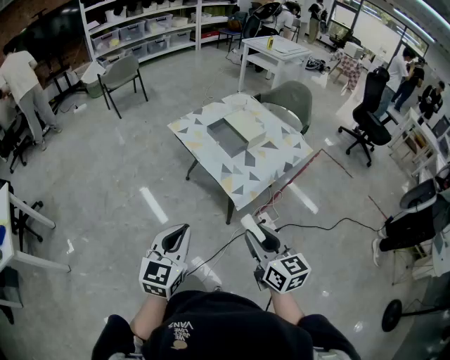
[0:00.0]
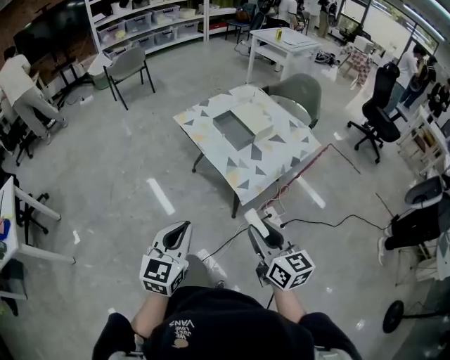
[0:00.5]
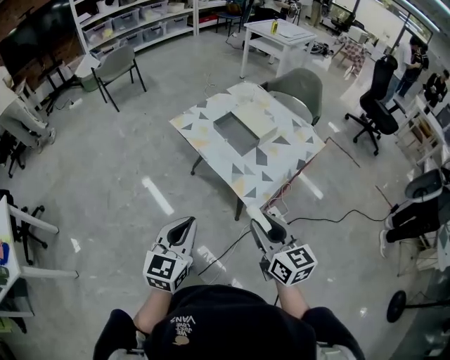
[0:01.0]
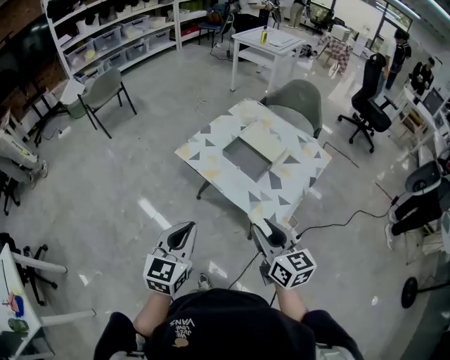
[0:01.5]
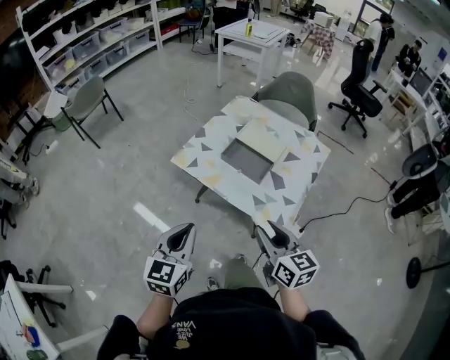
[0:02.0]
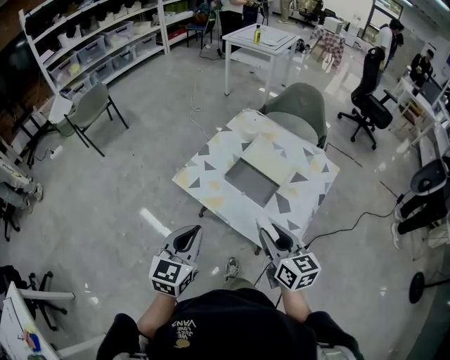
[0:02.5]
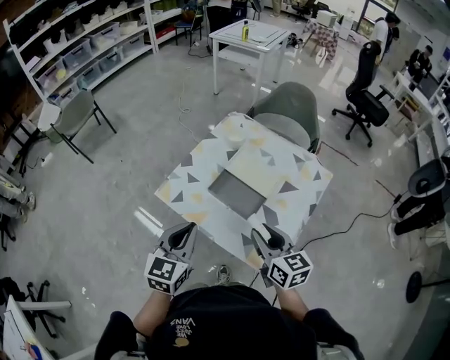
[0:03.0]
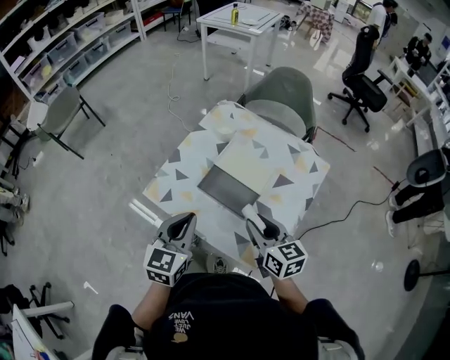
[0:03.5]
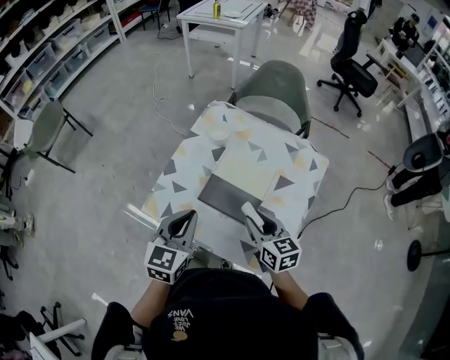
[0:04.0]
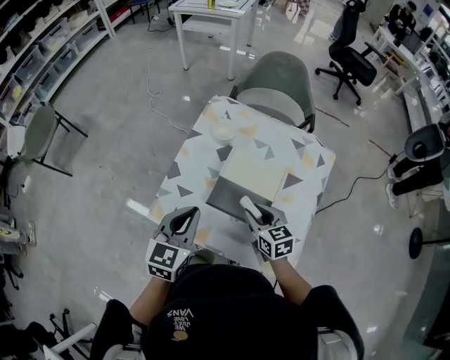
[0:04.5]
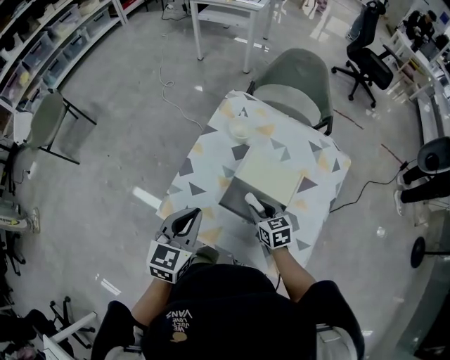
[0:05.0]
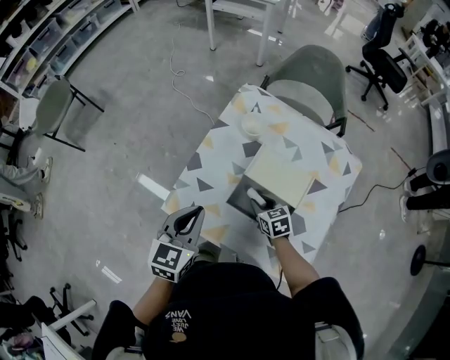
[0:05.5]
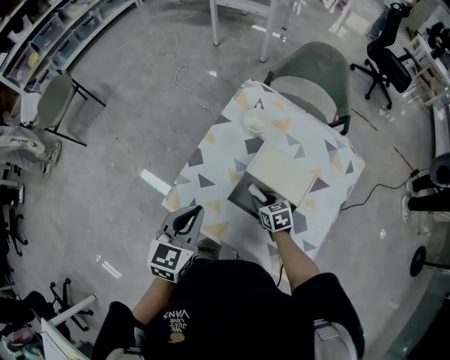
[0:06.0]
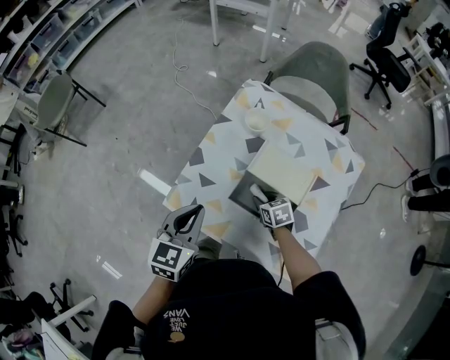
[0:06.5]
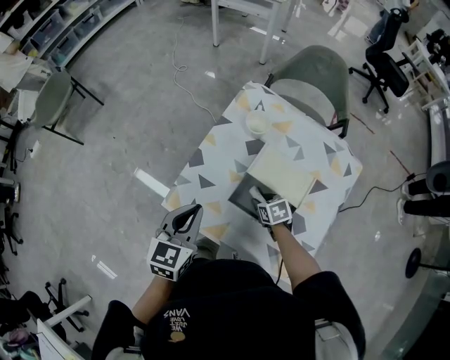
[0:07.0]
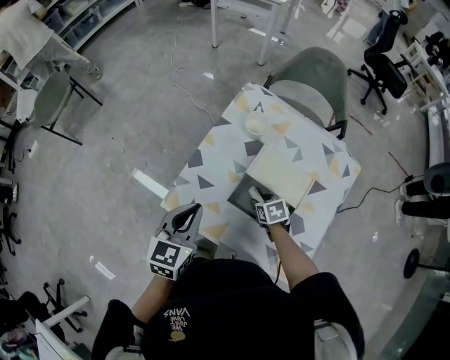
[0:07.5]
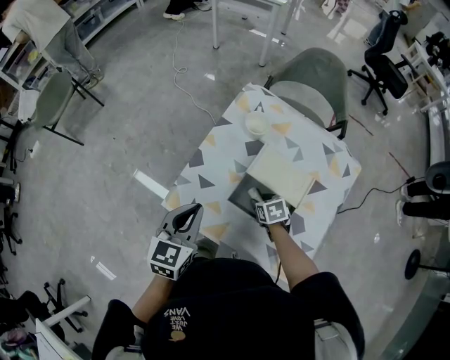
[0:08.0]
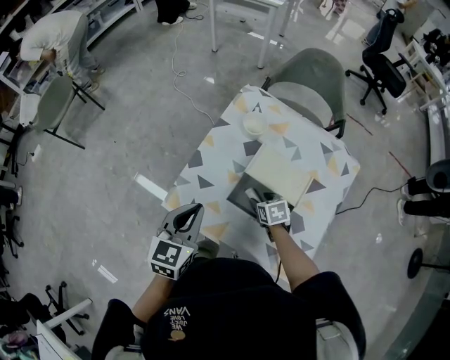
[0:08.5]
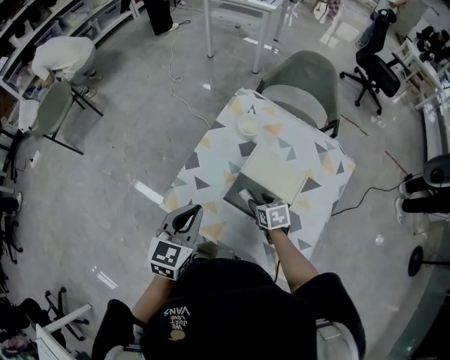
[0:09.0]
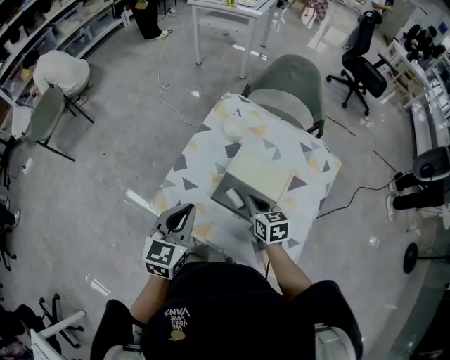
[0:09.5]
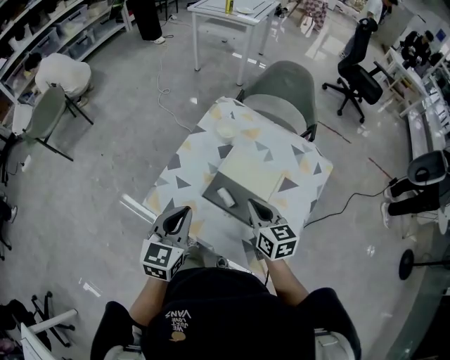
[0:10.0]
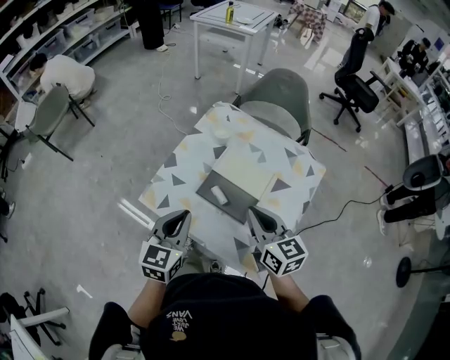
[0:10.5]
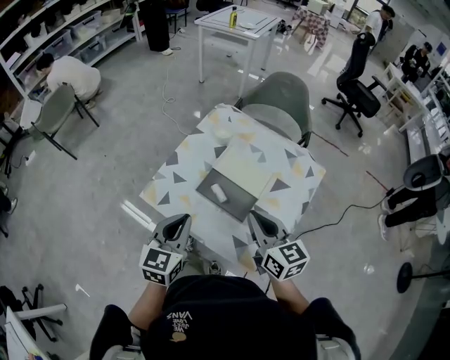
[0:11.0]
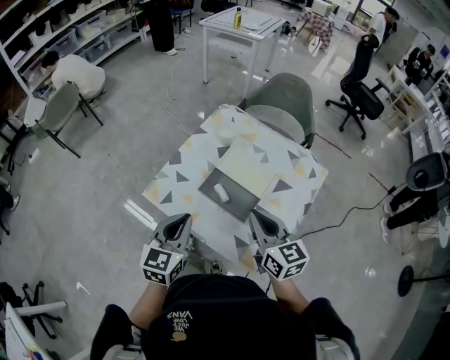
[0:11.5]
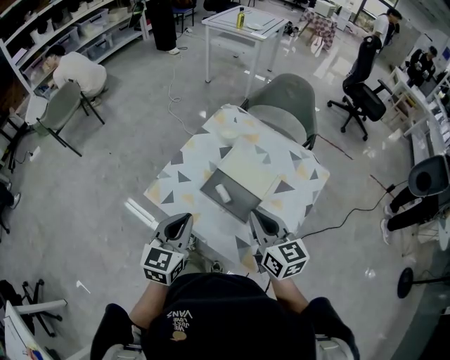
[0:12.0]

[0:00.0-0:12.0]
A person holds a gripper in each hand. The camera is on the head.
0:00.0 to 0:02.0: Both grippers move forward and to the left, about 35 cm.
0:02.0 to 0:04.0: Both grippers move forward, roughly 30 cm.
0:04.0 to 0:06.0: The left gripper is displaced to the left and forward by about 10 cm. The right gripper heads downward and forward, covering approximately 25 cm, and changes its angle by about 30 degrees.
0:06.0 to 0:08.0: The grippers stay close to where they were, moving slightly.
0:08.0 to 0:10.0: The left gripper goes approximately 10 cm backward and to the right, while the right gripper moves upward, roughly 25 cm, tilts its fingers roughly 40 degrees upward, and closes.
0:10.0 to 0:12.0: The left gripper is displaced backward by some 10 cm, while the right gripper moves backward and upward, about 10 cm.

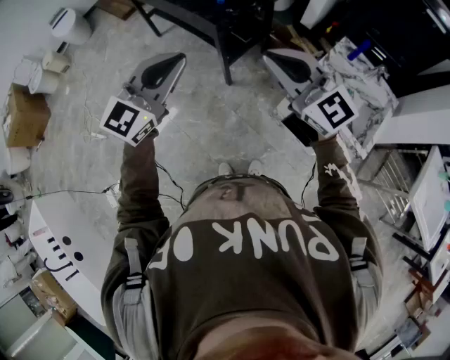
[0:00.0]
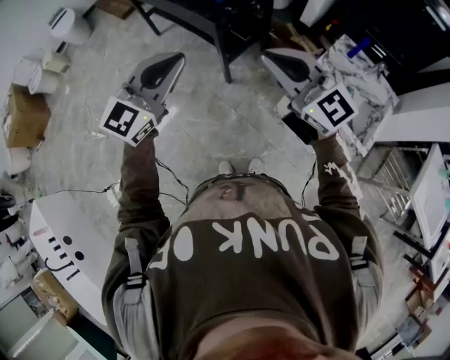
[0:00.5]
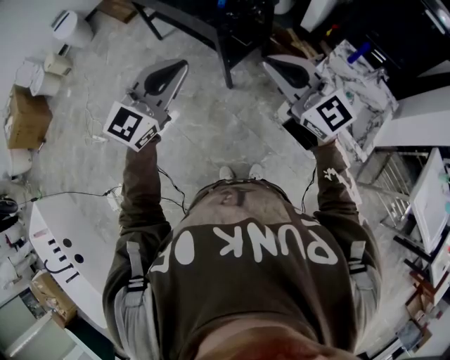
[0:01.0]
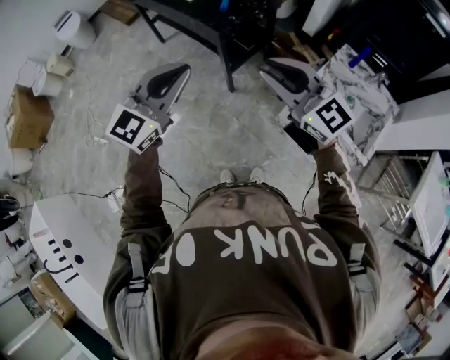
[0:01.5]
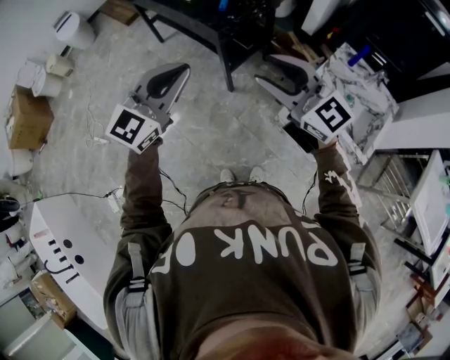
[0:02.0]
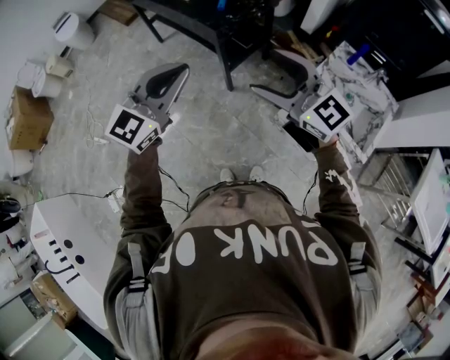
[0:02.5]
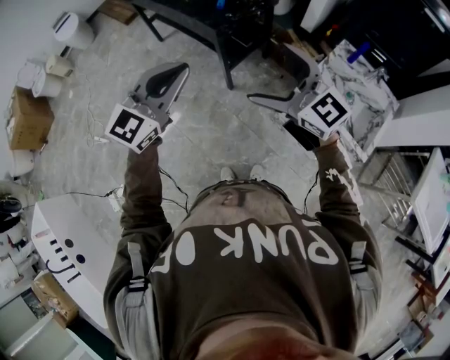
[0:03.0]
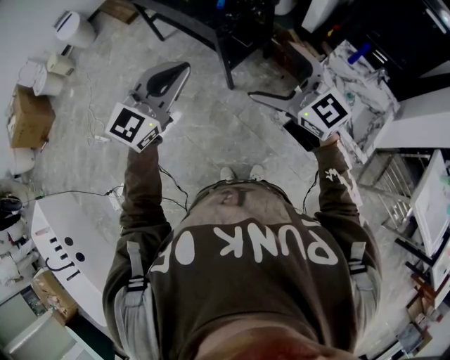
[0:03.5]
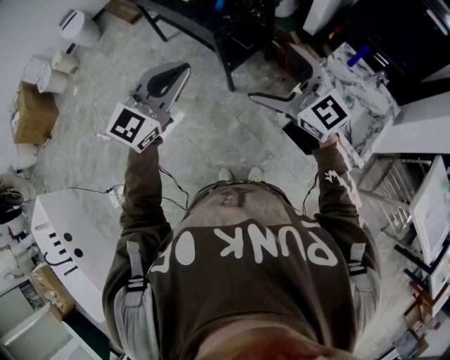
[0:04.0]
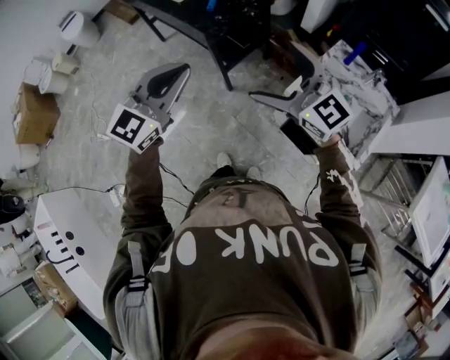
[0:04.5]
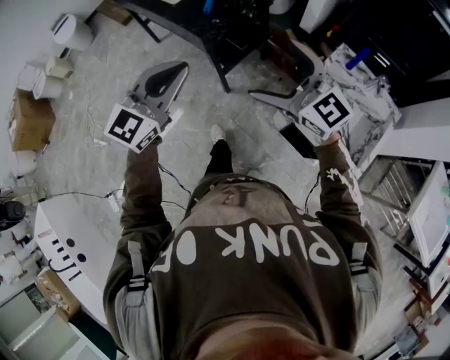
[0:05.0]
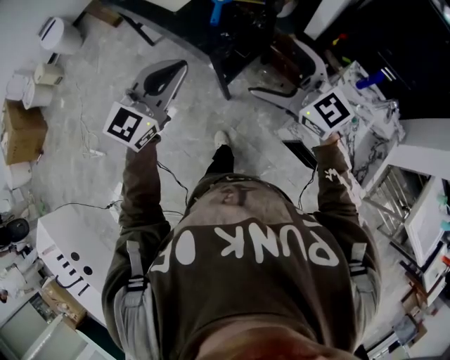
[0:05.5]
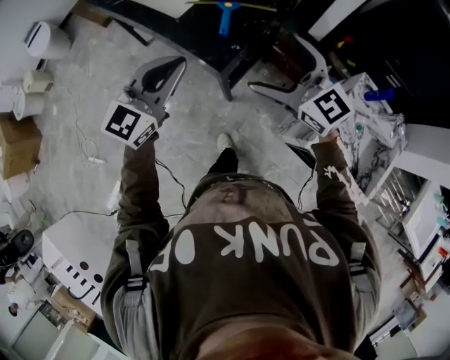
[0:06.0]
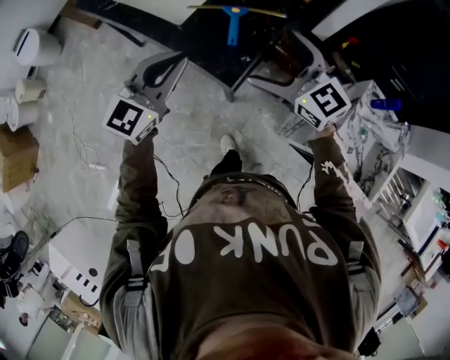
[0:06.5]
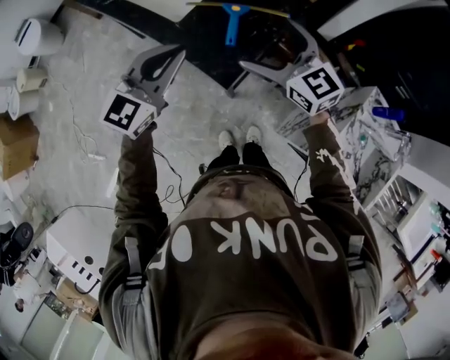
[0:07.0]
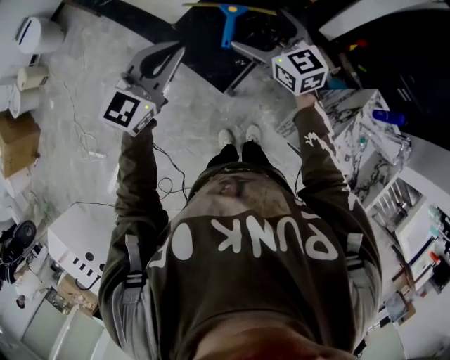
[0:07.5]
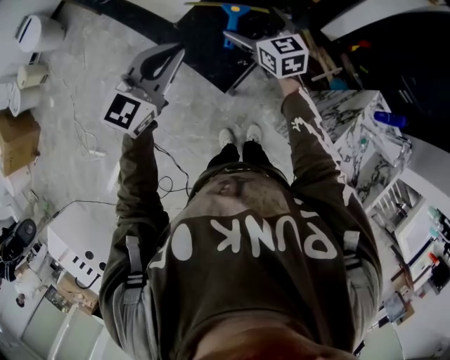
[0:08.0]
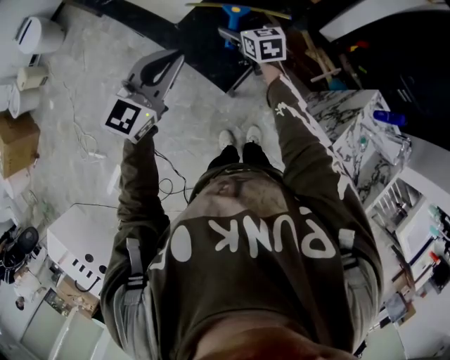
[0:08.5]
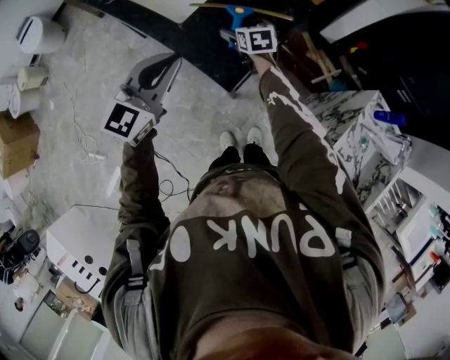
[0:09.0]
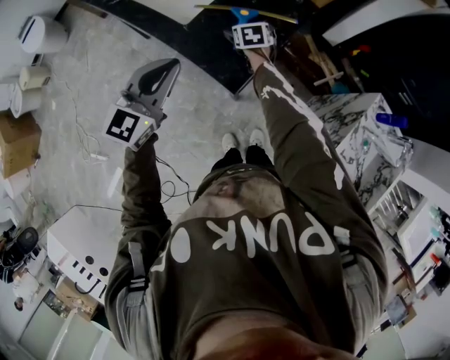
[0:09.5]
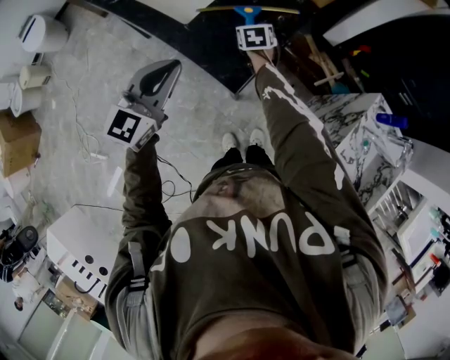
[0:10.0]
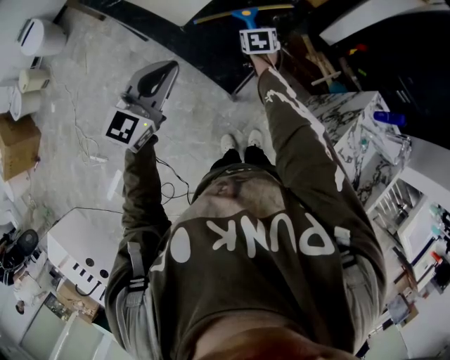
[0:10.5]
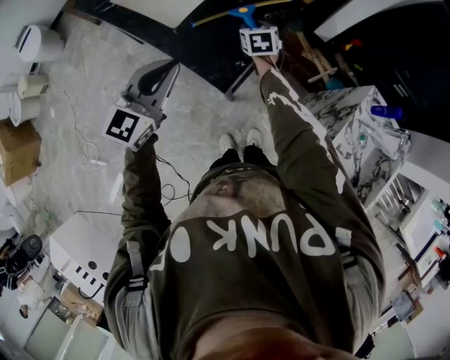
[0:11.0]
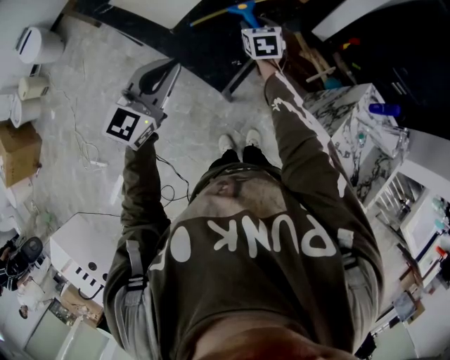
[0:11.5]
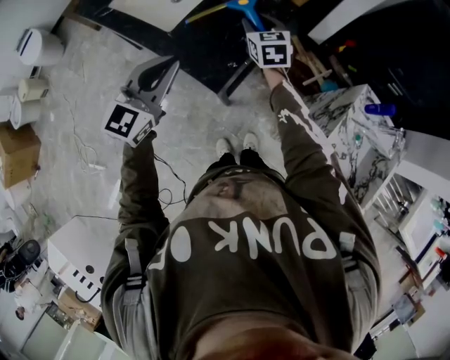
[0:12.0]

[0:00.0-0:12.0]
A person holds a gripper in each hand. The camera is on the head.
0:00.0 to 0:02.0: The grippers stay close to where they were, moving slightly.
0:02.0 to 0:04.0: The right gripper opens.
0:04.0 to 0:06.0: Both grippers move forward, approximately 35 cm.
0:06.0 to 0:08.0: The right gripper travels forward and downward by roughly 30 cm, and rotates about 20 degrees; the left gripper heads forward, covering some 15 cm.
0:08.0 to 0:10.0: The right gripper is displaced downward by some 15 cm, tips its fingers downward by approximately 30 degrees, and closes, while the left gripper ends up roughly 5 cm from where it was.
0:10.0 to 0:12.0: The left gripper heads to the right, covering some 5 cm. Meanwhile the right gripper goes roughly 15 cm upward and to the right, and rotates approximately 20 degrees.

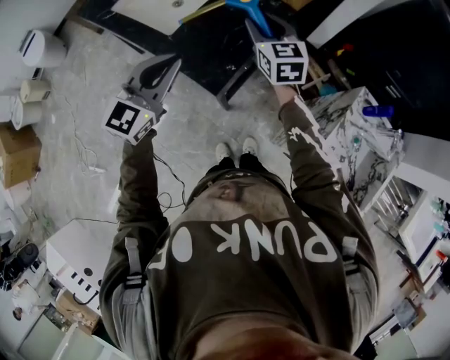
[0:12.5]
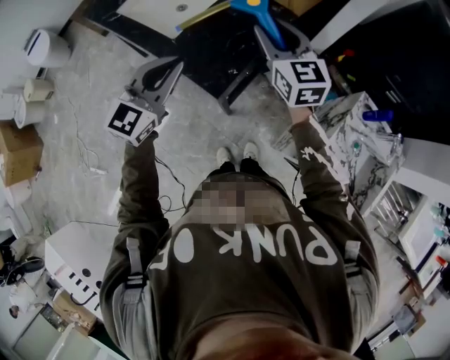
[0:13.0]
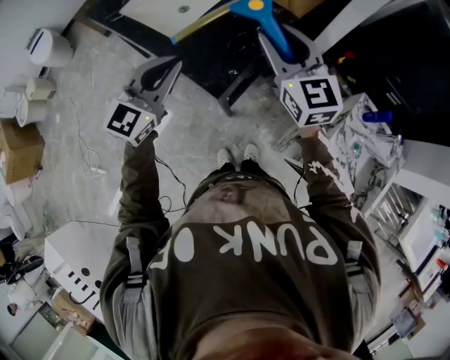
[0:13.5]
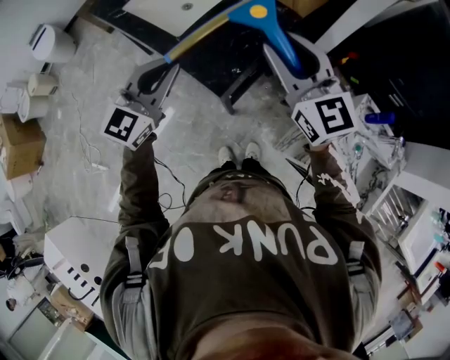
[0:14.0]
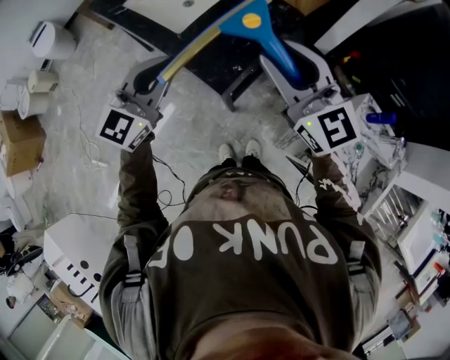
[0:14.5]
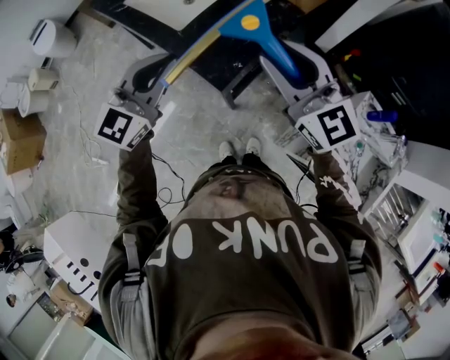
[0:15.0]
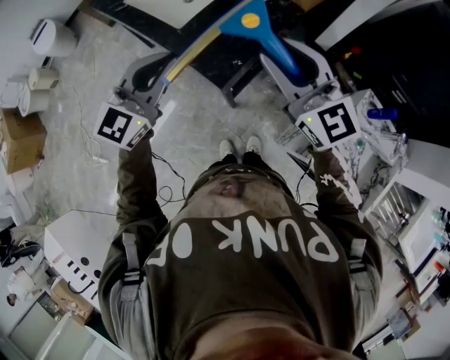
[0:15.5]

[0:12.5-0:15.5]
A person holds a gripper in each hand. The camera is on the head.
0:12.5 to 0:14.0: The right gripper goes approximately 20 cm backward and upward, and turns by about 20 degrees.
0:14.0 to 0:15.5: The grippers make only small movements.
